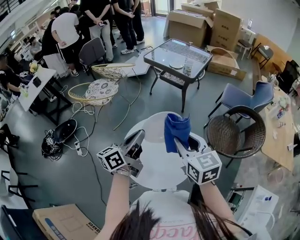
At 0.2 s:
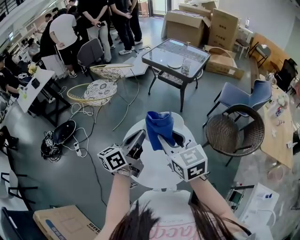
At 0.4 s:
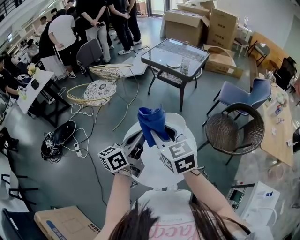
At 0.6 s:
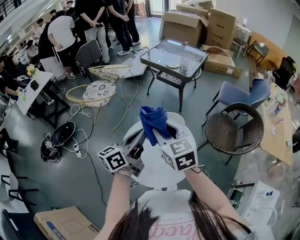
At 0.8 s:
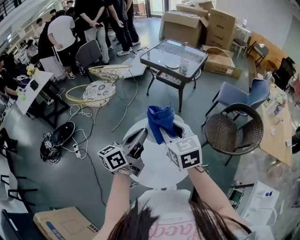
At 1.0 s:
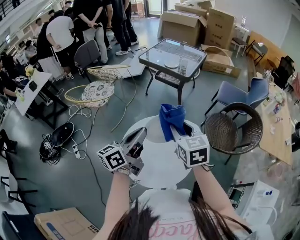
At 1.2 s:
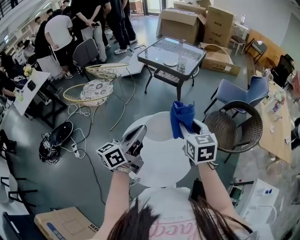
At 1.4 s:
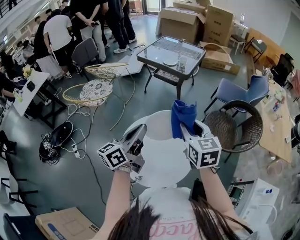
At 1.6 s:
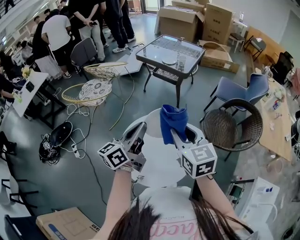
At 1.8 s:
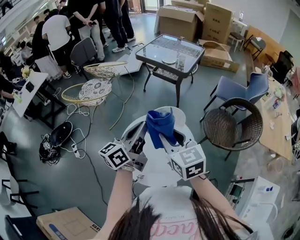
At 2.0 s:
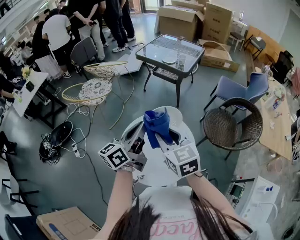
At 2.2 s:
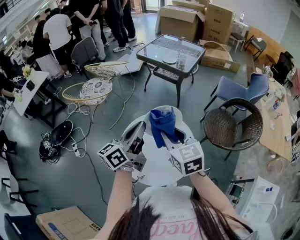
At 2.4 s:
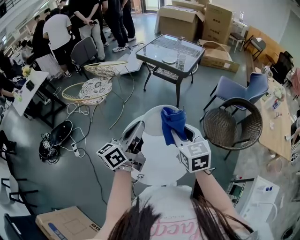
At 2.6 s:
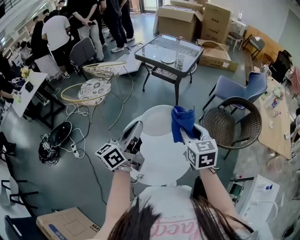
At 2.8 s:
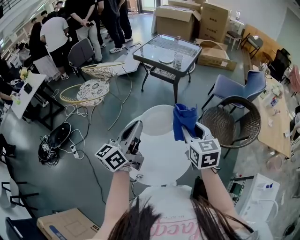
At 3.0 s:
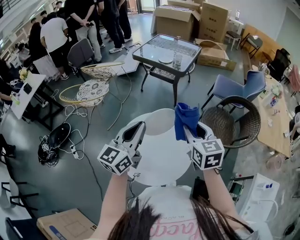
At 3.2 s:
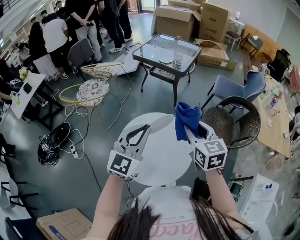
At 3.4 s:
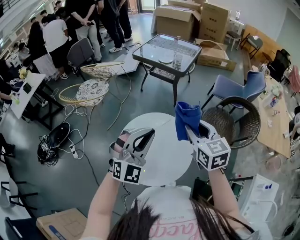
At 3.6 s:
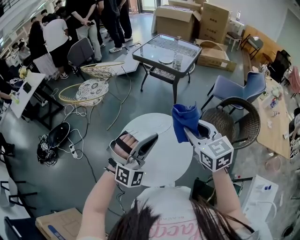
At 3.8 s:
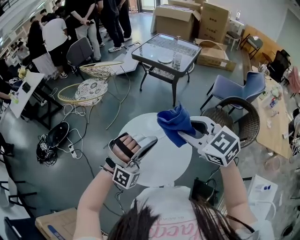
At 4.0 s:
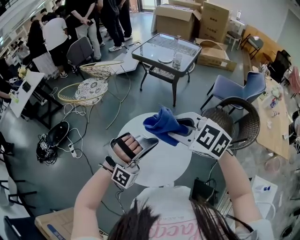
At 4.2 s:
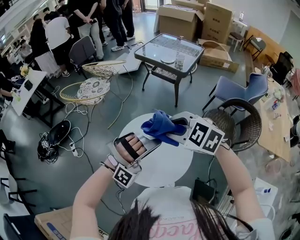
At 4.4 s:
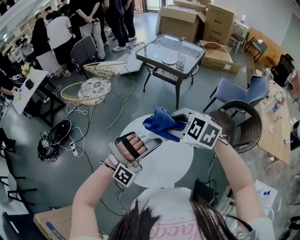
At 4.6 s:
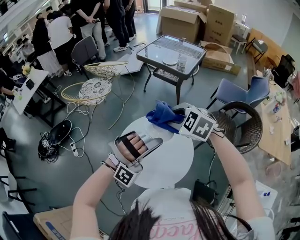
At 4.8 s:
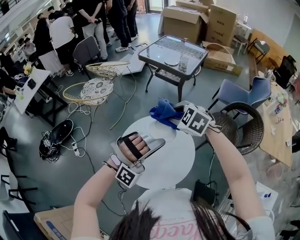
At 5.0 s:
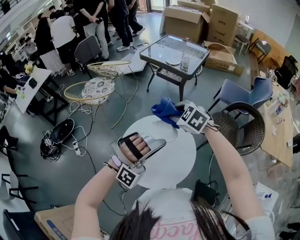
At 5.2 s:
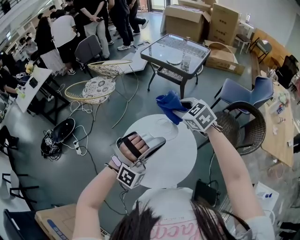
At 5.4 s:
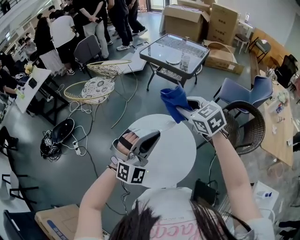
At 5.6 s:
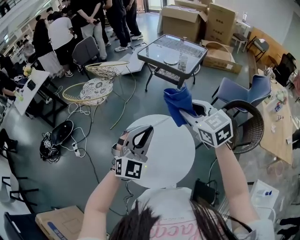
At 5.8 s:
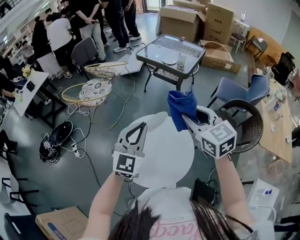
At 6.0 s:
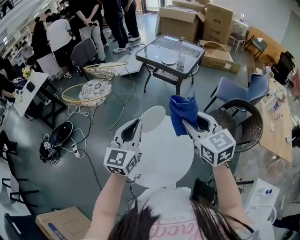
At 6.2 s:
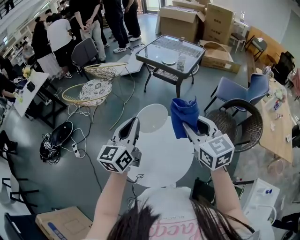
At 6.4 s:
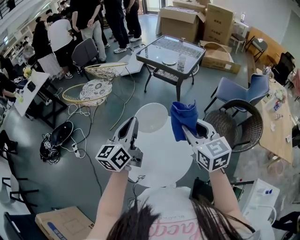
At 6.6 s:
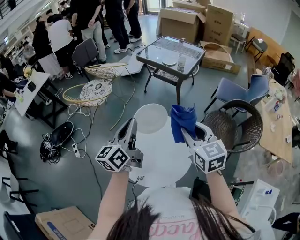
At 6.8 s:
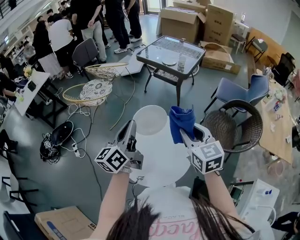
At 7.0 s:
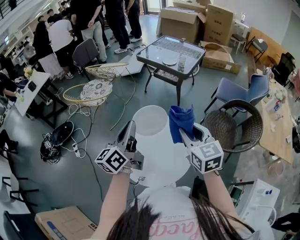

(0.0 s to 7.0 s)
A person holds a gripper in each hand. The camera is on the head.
0.0 s - 1.4 s: The right gripper reaches some 10 cm to the left, then returns.
1.4 s - 2.8 s: The right gripper travels to the left and back again, about 10 cm each way.
2.8 s - 4.2 s: The left gripper moves to the right and backward, approximately 10 cm, and rolls clockwise, seen from behind, by roughly 130 degrees. The right gripper shifts approximately 10 cm to the left, and rotates roughly 60 degrees.
4.2 s - 5.6 s: The right gripper moves forward and to the right, approximately 10 cm, and turns by about 40 degrees; the left gripper travels forward by approximately 5 cm, and twists some 60 degrees counterclockwise, seen from behind.
5.6 s - 7.0 s: The left gripper heads to the left, covering roughly 5 cm, and rolls counterclockwise, seen from behind, by approximately 80 degrees, while the right gripper goes about 5 cm backward.

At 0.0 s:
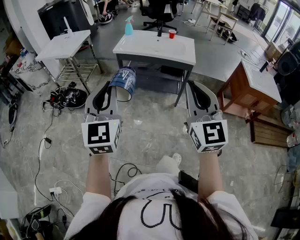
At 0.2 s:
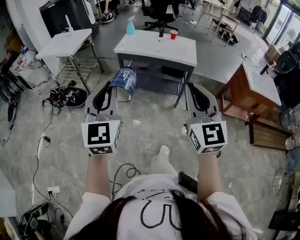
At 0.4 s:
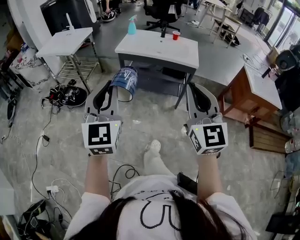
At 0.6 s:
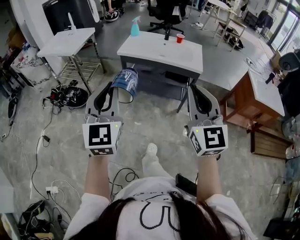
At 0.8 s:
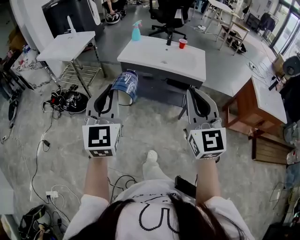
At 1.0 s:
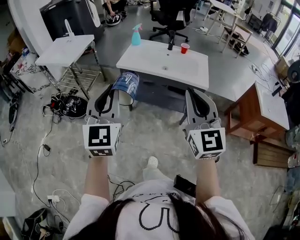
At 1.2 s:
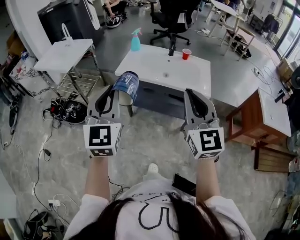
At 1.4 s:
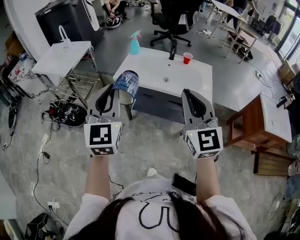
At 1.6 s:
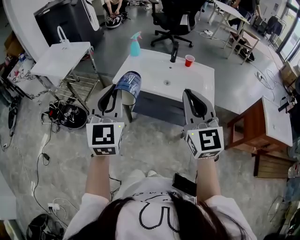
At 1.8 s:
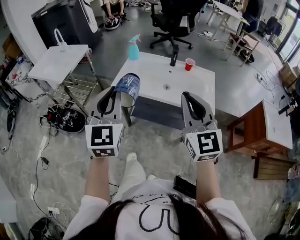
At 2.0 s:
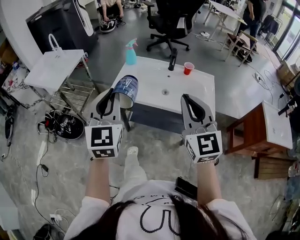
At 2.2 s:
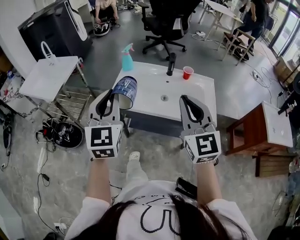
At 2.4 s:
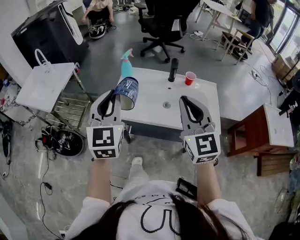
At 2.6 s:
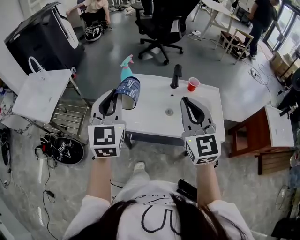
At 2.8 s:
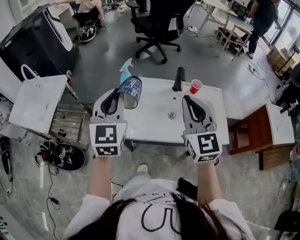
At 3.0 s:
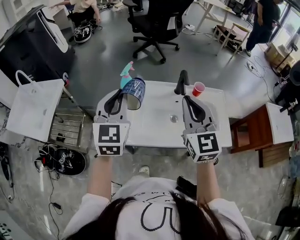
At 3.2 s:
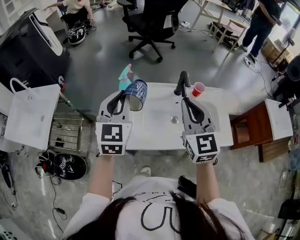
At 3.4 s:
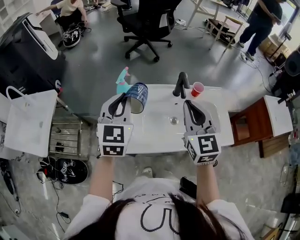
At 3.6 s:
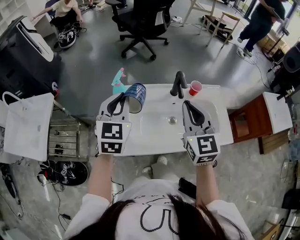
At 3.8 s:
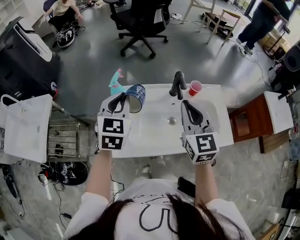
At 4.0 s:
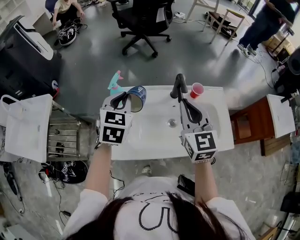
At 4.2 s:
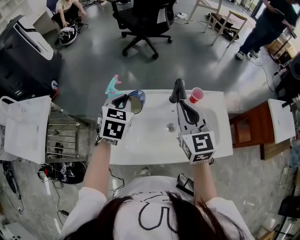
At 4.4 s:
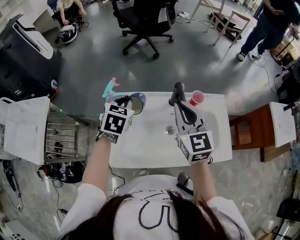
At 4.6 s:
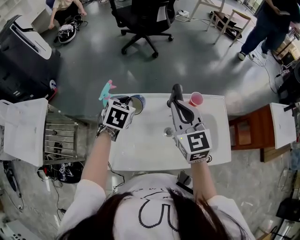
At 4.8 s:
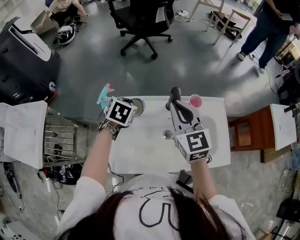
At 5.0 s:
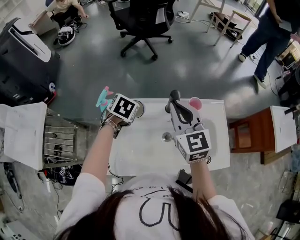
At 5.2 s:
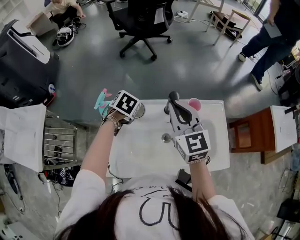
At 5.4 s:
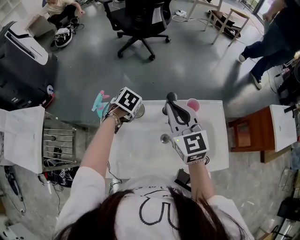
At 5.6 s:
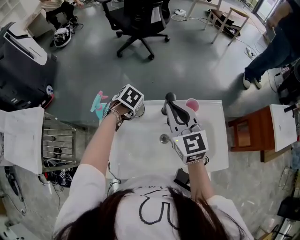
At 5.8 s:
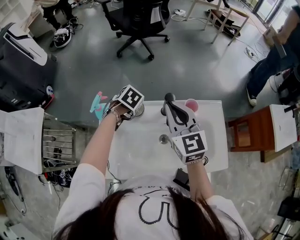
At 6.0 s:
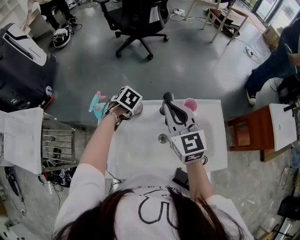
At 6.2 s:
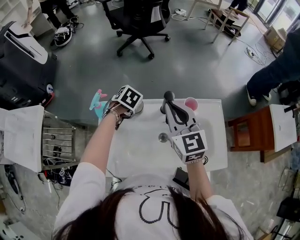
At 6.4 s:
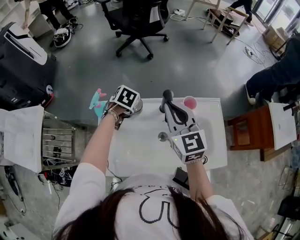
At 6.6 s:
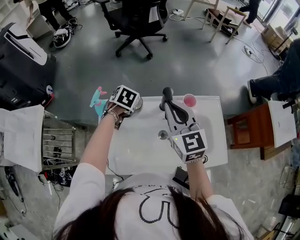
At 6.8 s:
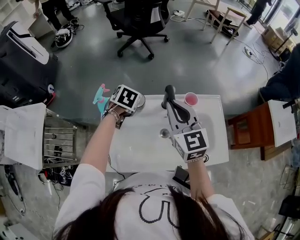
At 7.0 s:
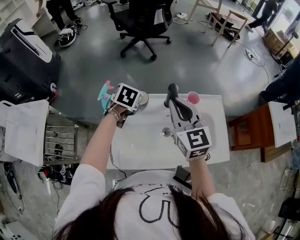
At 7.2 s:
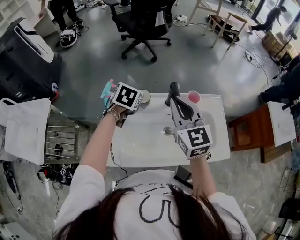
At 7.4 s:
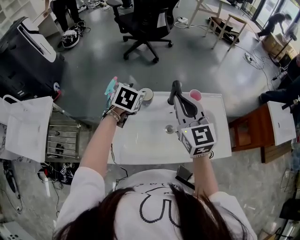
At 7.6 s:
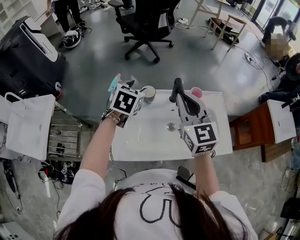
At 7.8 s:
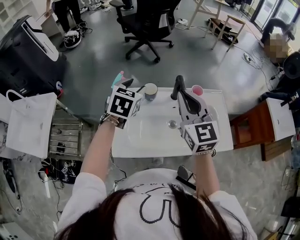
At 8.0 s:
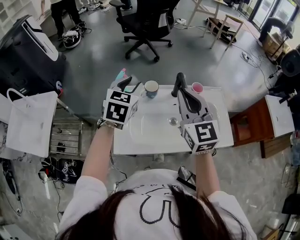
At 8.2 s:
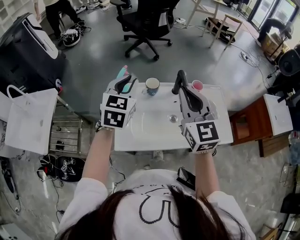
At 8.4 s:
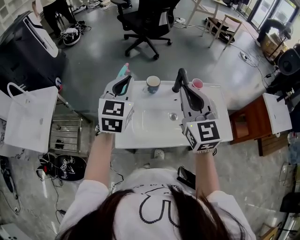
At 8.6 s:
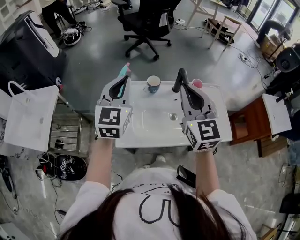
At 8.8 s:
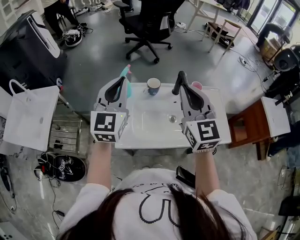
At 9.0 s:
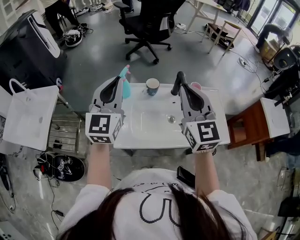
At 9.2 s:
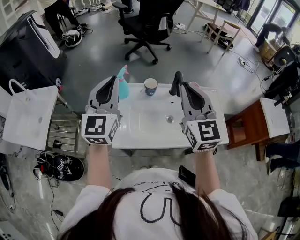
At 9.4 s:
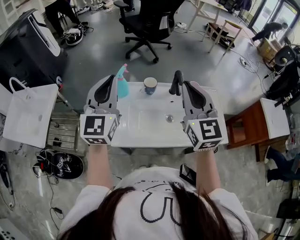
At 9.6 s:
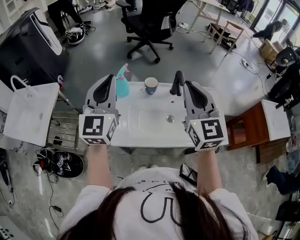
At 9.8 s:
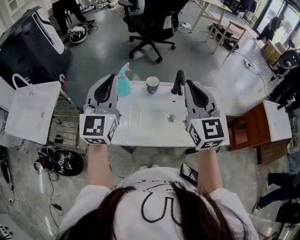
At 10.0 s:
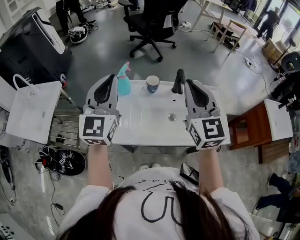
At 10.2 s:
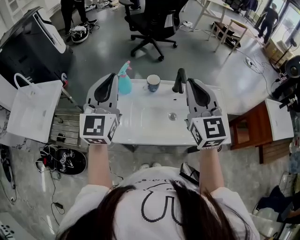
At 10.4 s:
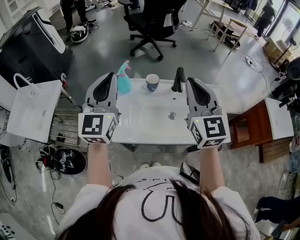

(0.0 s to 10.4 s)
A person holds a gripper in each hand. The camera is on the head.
0.0 s - 1.4 s: Both grippers move forward, roughly 35 cm.
1.4 s - 3.0 s: The pair of grippers is taken forward, approximately 40 cm.
3.0 s - 4.4 s: Both grippers travel together forward and downward, roughly 20 cm. The left gripper points its fingers approximately 40 degrees further downward.
4.4 s - 6.0 s: The right gripper shifts by roughly 5 cm. Meanwhile the left gripper travels downward by approximately 10 cm, and tips its fingers downward by about 30 degrees.
6.0 s - 7.4 s: The left gripper moves upward, roughly 15 cm, tilts its fingers roughly 30 degrees upward, and opens, while the right gripper changes place by approximately 10 cm.
7.4 s - 9.0 s: The left gripper is displaced upward, backward and to the left by about 25 cm, points its fingers some 50 degrees further upward, and closes up. Meanwhile the right gripper shifts approximately 10 cm backward and upward.
9.0 s - 10.4 s: The grippers make only small movements.

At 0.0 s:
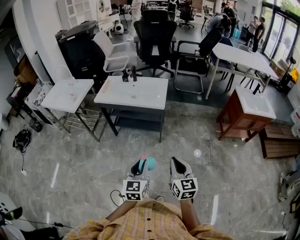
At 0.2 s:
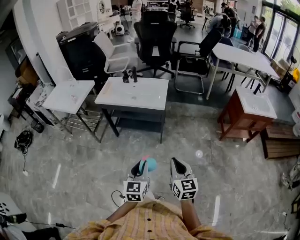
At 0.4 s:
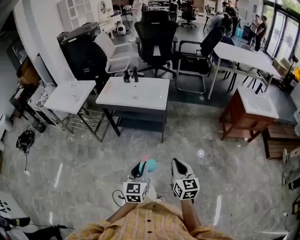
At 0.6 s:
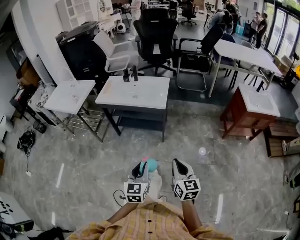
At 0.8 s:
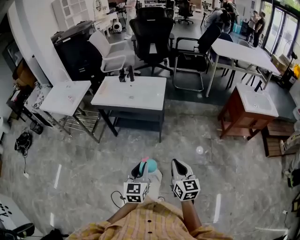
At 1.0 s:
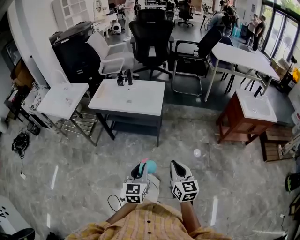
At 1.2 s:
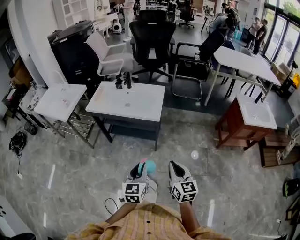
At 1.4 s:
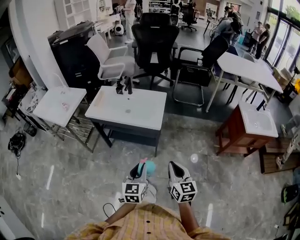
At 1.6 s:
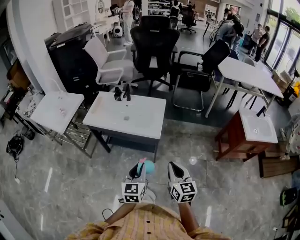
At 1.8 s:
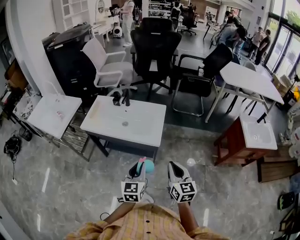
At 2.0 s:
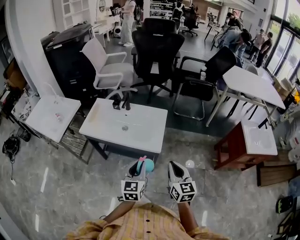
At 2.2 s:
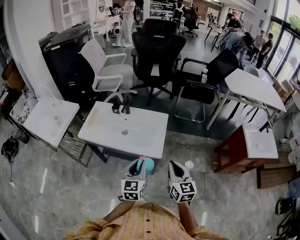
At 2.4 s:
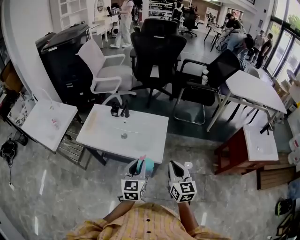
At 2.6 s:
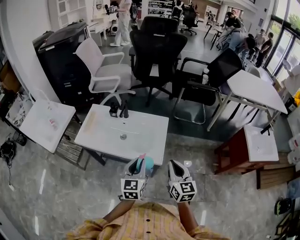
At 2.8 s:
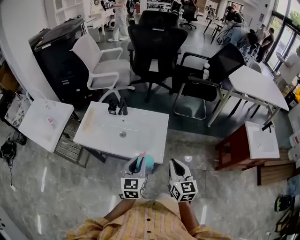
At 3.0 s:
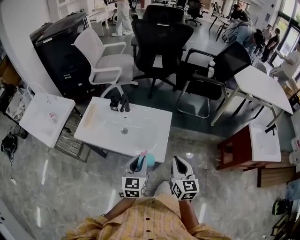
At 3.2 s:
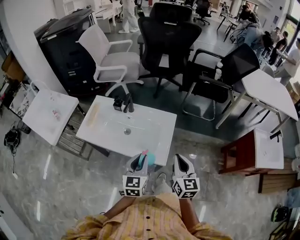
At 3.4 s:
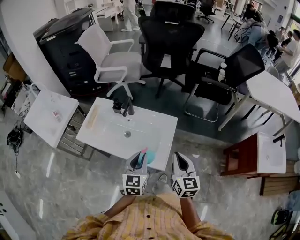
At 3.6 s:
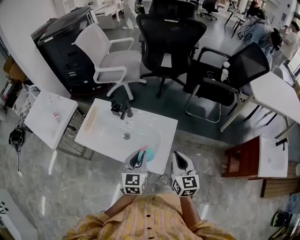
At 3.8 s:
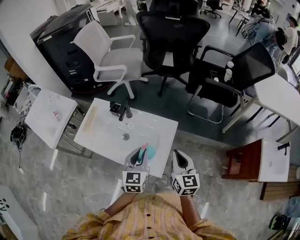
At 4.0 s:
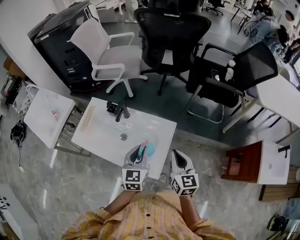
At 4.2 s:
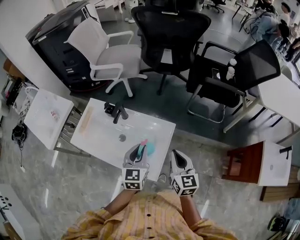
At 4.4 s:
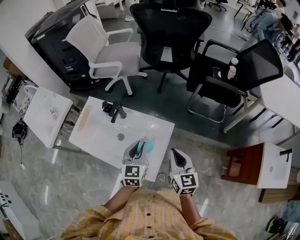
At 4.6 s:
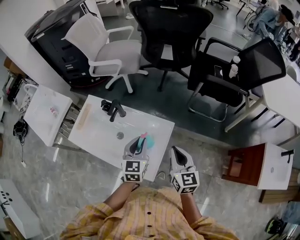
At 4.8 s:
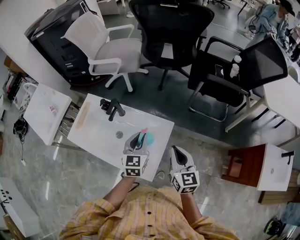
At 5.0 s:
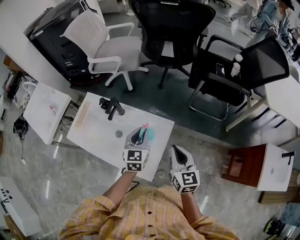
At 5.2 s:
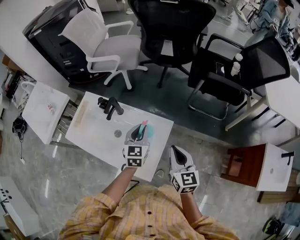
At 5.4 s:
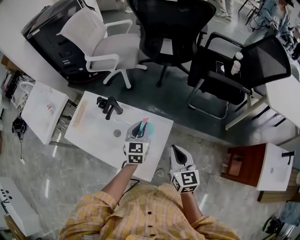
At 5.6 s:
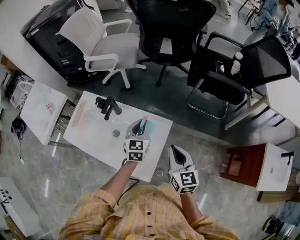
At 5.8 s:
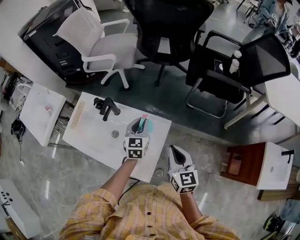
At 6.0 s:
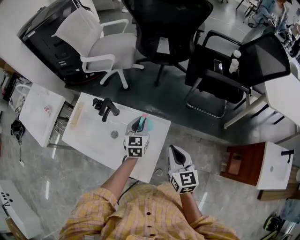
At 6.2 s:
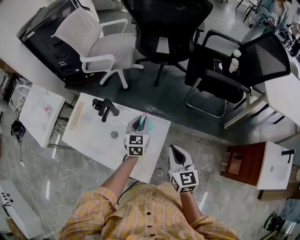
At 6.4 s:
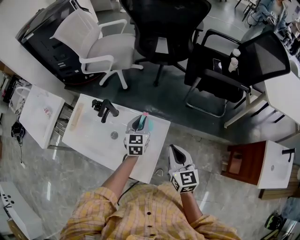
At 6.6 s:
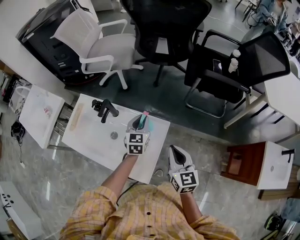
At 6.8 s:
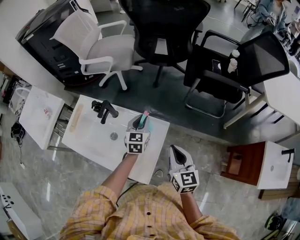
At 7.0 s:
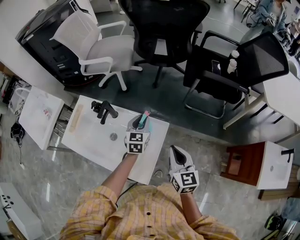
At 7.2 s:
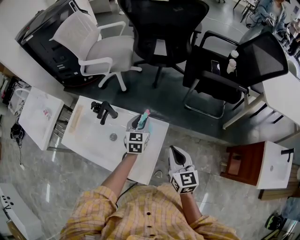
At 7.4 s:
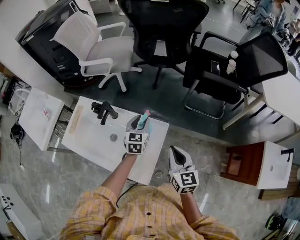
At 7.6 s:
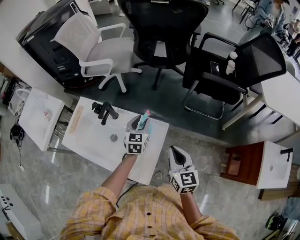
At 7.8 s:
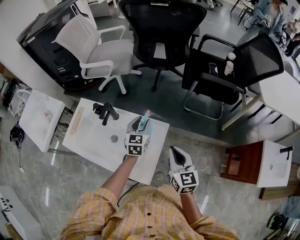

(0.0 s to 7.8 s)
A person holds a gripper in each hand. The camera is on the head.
0.0 s - 1.6 s: Both grippers move forward, approximately 25 cm.
1.6 s - 3.2 s: The two grippers go about 30 cm forward.
3.2 s - 4.6 s: Both grippers travel together forward and to the right, about 20 cm.
4.6 s - 6.2 s: The left gripper goes roughly 15 cm forward and downward.
6.2 s - 7.8 s: The grippers make only small movements.
